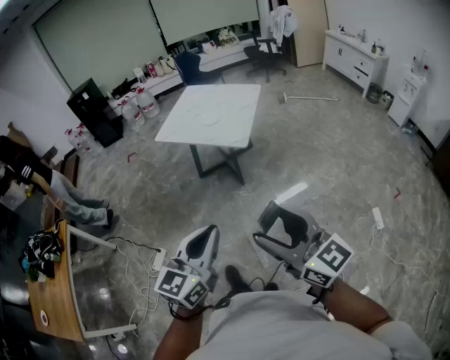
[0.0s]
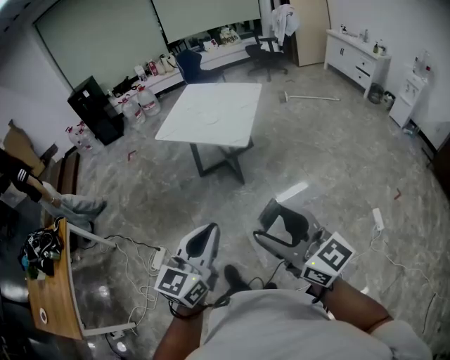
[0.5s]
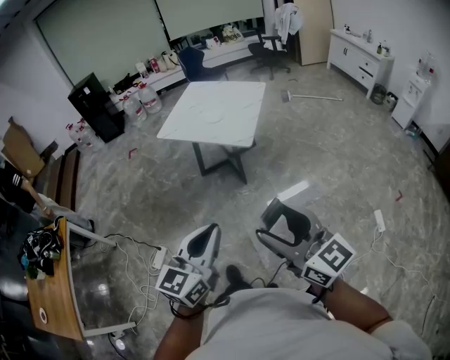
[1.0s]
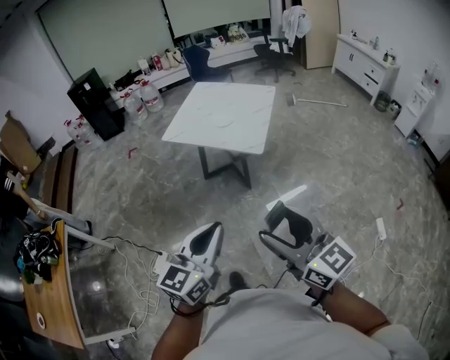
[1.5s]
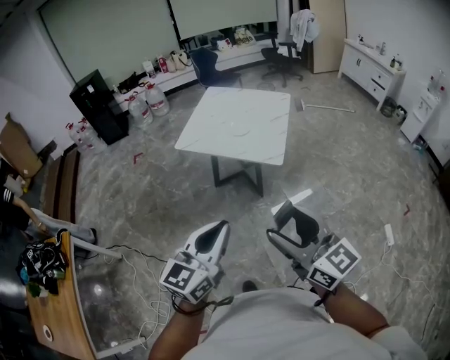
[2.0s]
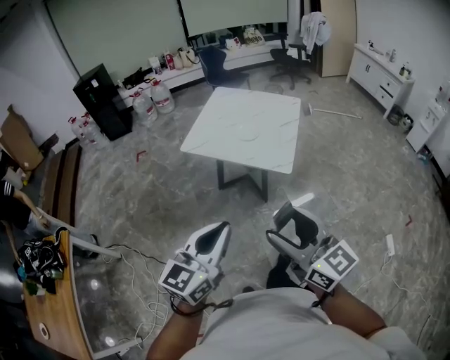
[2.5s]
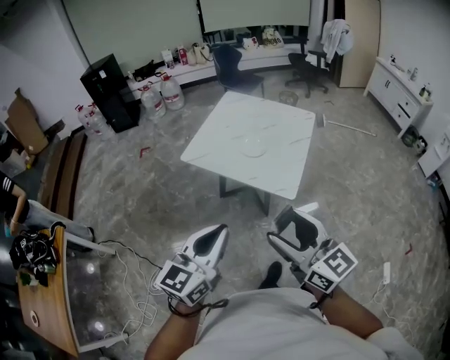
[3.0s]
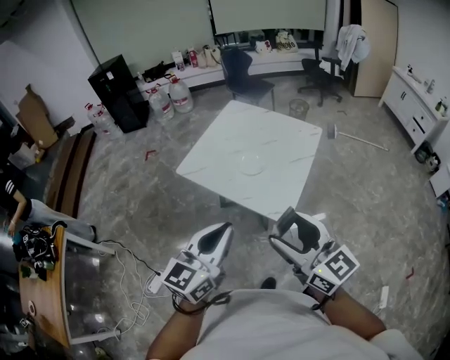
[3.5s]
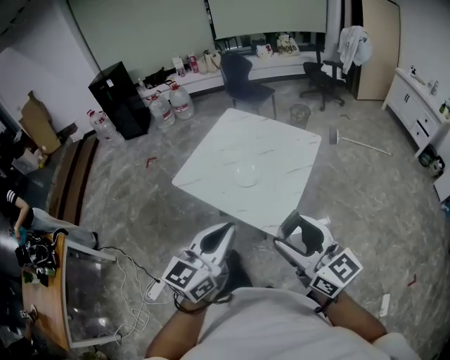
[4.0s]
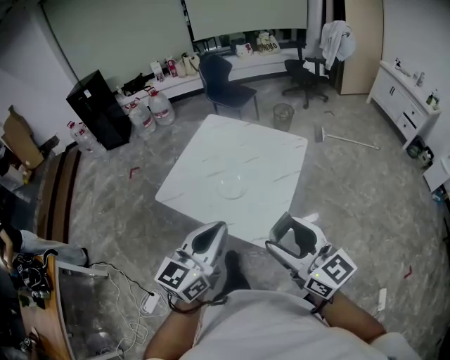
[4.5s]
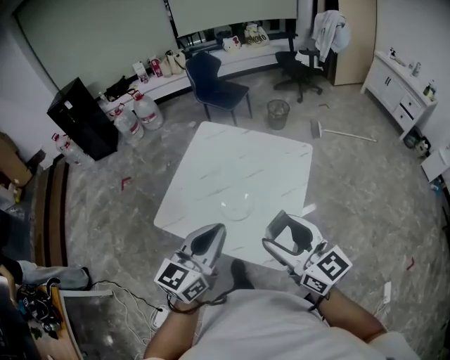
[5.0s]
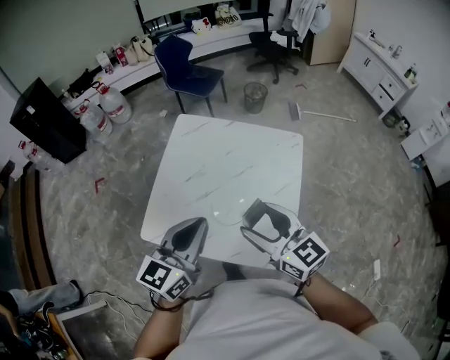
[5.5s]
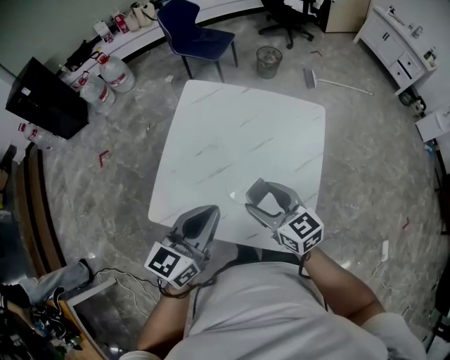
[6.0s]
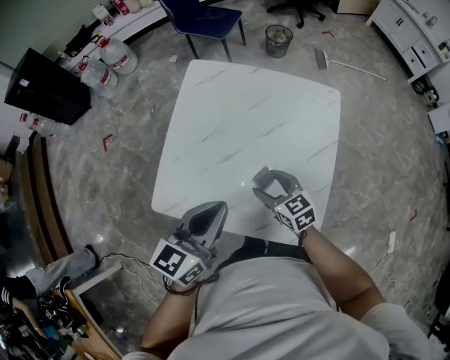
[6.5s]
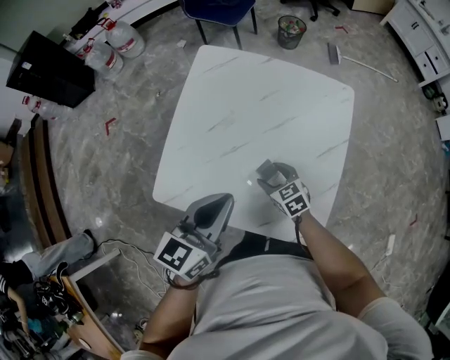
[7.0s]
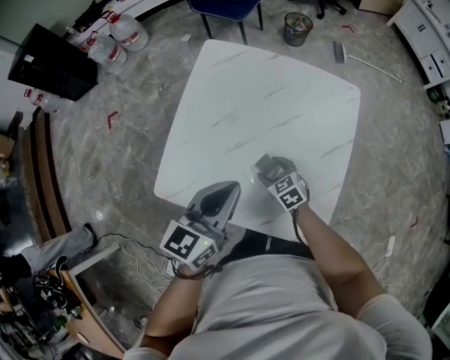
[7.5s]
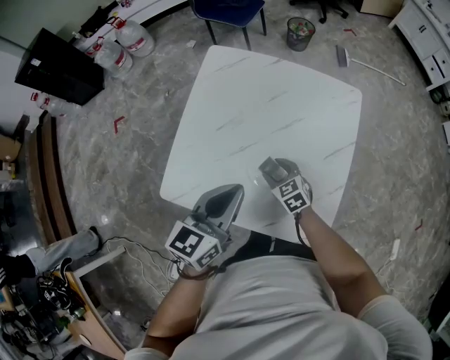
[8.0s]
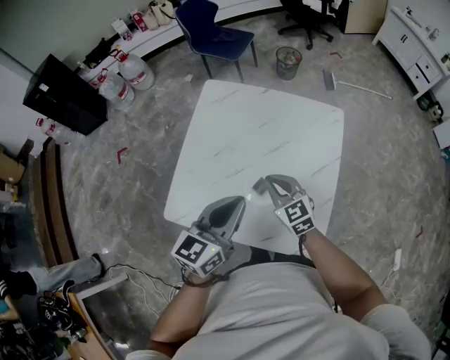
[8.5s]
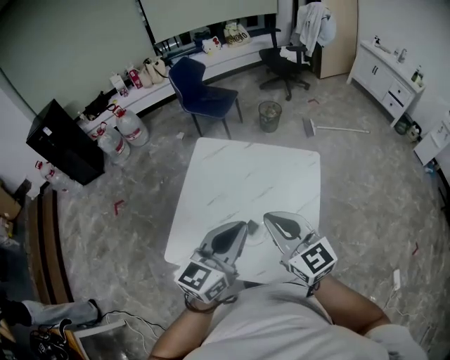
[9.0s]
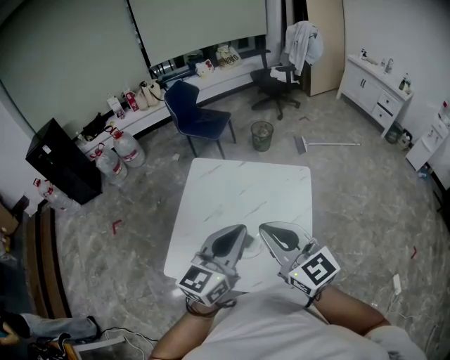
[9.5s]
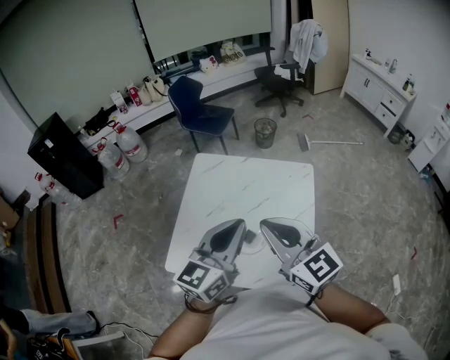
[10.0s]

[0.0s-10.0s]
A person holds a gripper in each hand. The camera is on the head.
0.0s to 2.0s: The grippers both shift forward and to the left by some 25 cm.
2.0s to 4.0s: Both grippers are carried forward and to the right, approximately 40 cm.
4.0s to 6.0s: The pair of grippers is taken forward, approximately 40 cm. The left gripper swivels roughly 20 degrees; the right gripper shifts roughly 20 cm downward, and swivels roughly 30 degrees.
6.0s to 8.0s: The right gripper travels downward by roughly 25 cm, and turns by roughly 20 degrees. The left gripper is displaced downward by about 10 cm.
8.0s to 10.0s: The right gripper moves upward, approximately 50 cm, tips its fingers upward by approximately 40 degrees, and closes; the left gripper heads upward, covering about 20 cm.

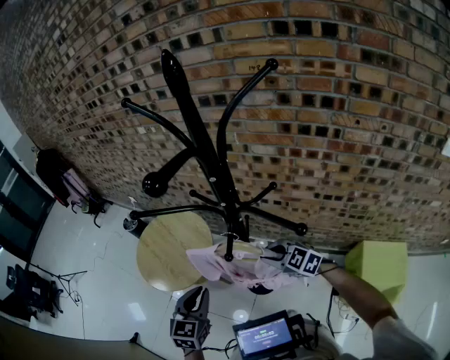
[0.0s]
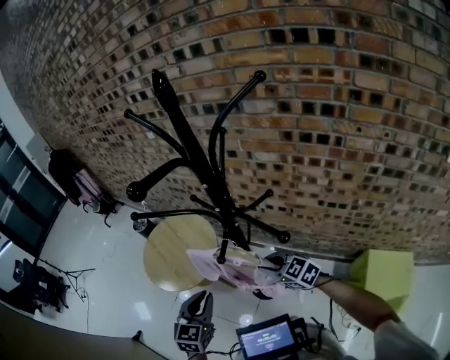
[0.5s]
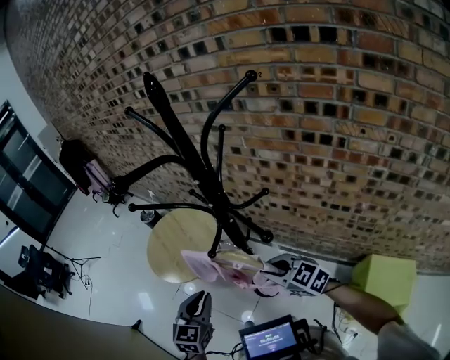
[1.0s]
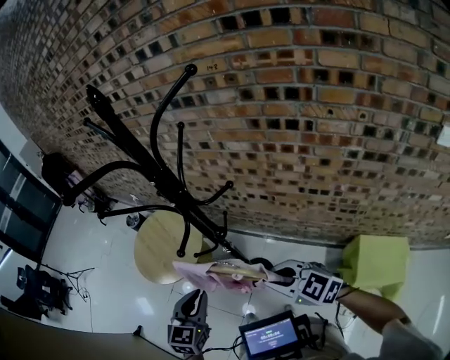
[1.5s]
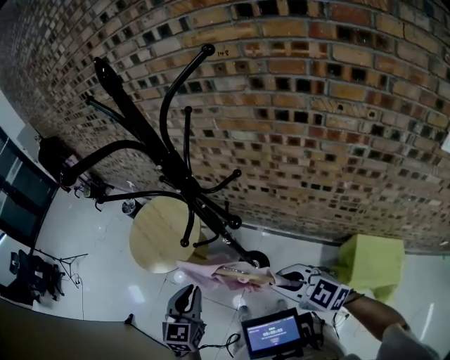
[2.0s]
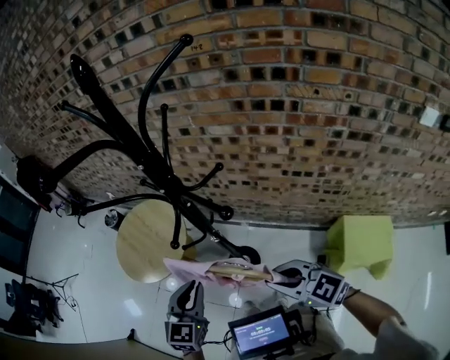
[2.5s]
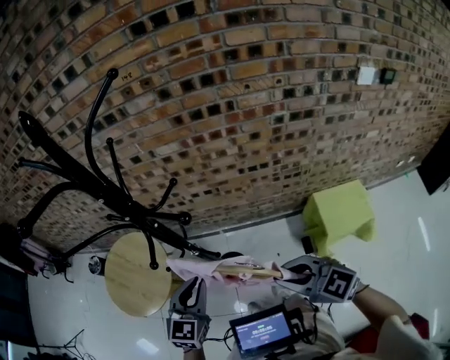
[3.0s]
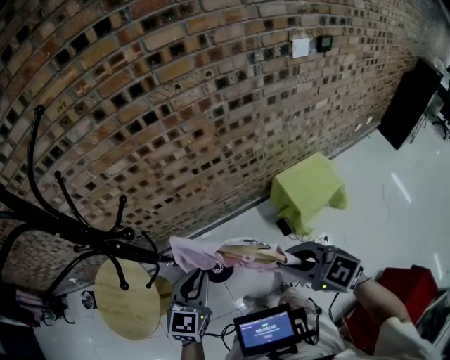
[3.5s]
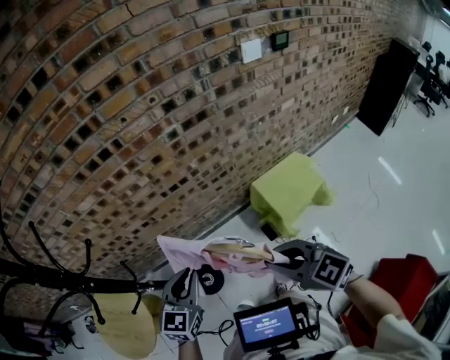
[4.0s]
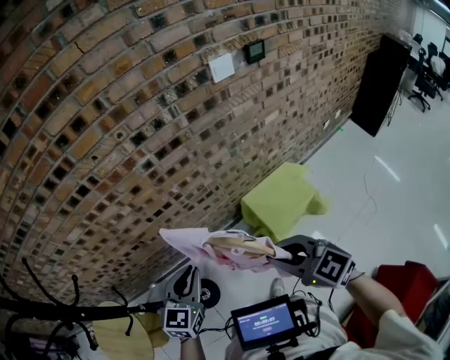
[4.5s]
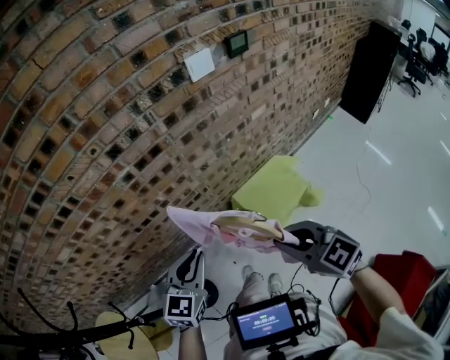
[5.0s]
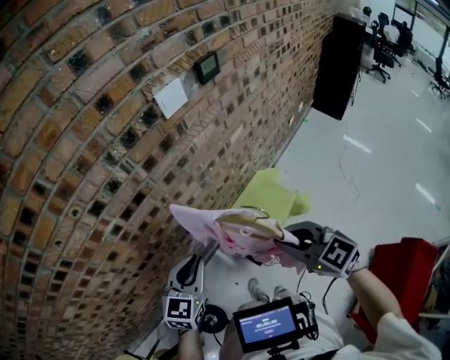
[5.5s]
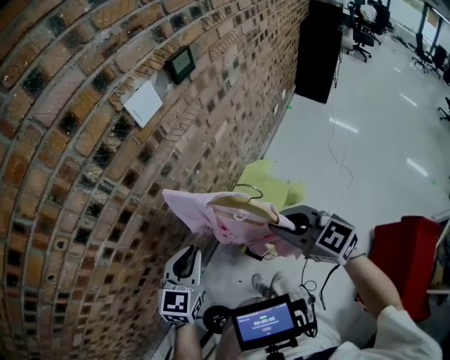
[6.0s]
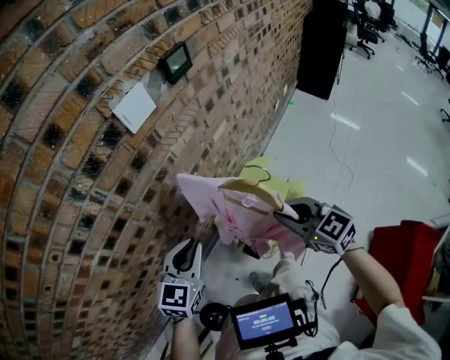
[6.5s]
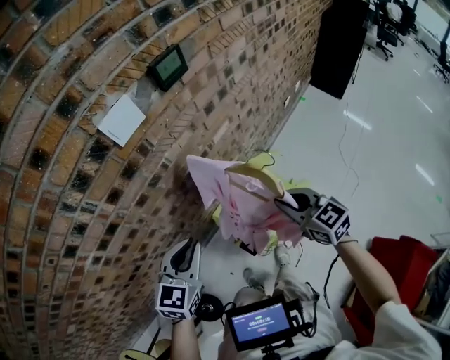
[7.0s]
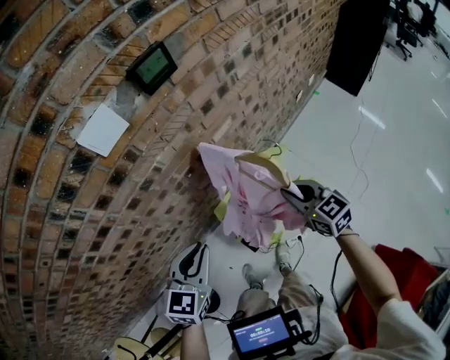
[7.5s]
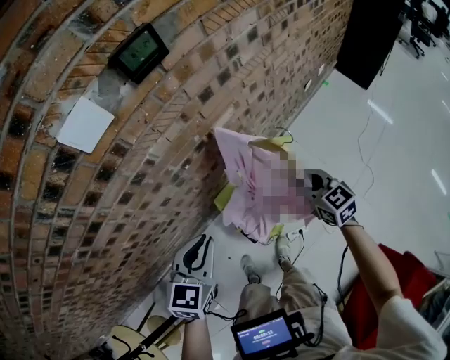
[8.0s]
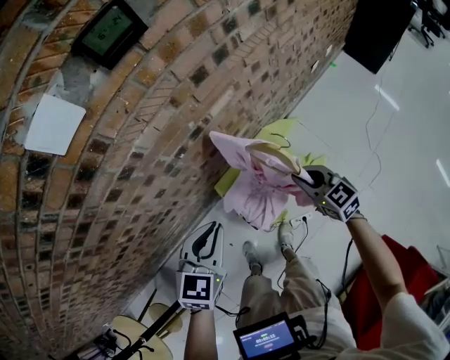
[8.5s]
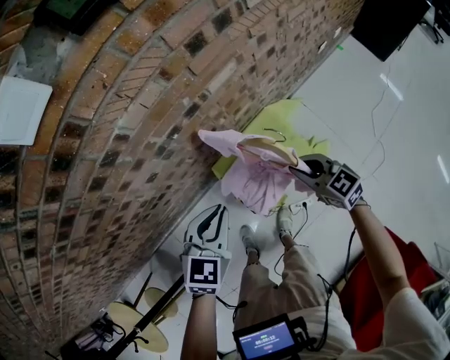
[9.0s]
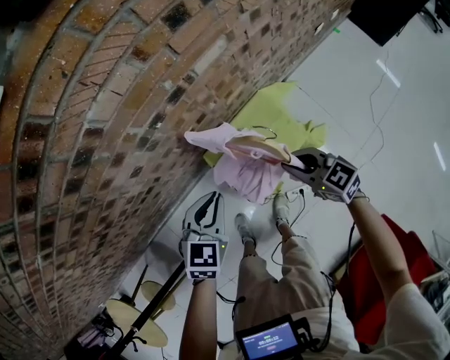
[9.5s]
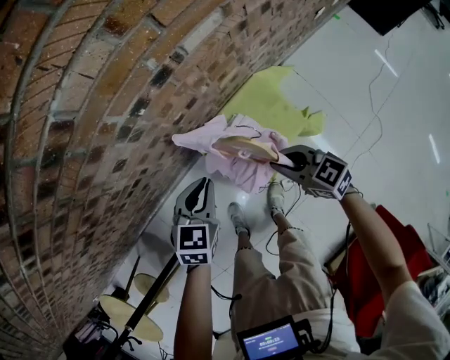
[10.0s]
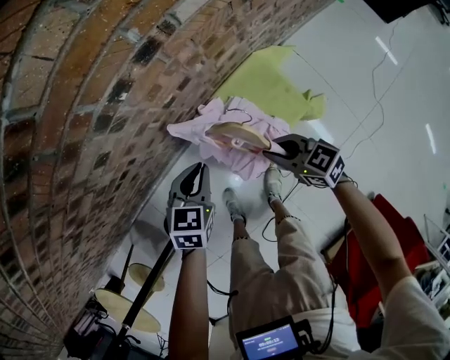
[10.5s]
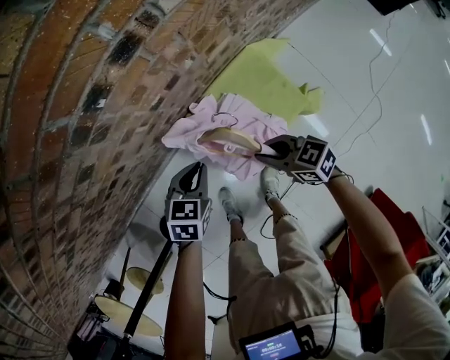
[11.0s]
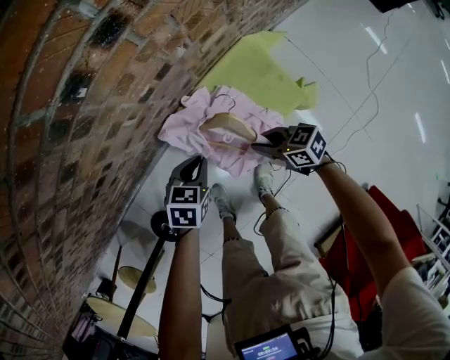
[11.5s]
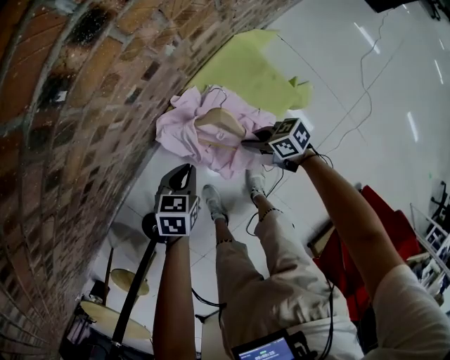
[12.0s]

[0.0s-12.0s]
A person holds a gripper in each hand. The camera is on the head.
0.0s to 2.0s: The right gripper travels backward by approximately 20 cm; the left gripper goes approximately 10 cm backward and to the right.
2.0s to 4.0s: The left gripper changes place by about 30 cm, and changes its angle by approximately 50 degrees, while the right gripper moves about 25 cm, and swivels roughly 50 degrees.
4.0s to 6.0s: The pair of grippers is taken roughly 50 cm. The left gripper changes its angle by some 30 degrees. The right gripper swivels about 30 degrees.
6.0s to 8.0s: The right gripper travels to the right, forward and downward by about 40 cm. Meanwhile the left gripper goes approximately 25 cm to the right and forward.
8.0s to 10.0s: Both grippers travel together downward, some 30 cm. The right gripper swivels some 30 degrees.
10.0s to 12.0s: The two grippers go some 30 cm downward. The left gripper swivels some 20 degrees. Meanwhile the right gripper rotates roughly 30 degrees.

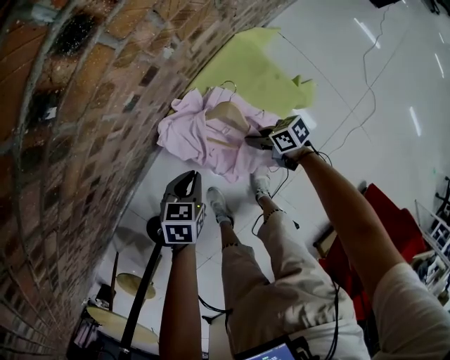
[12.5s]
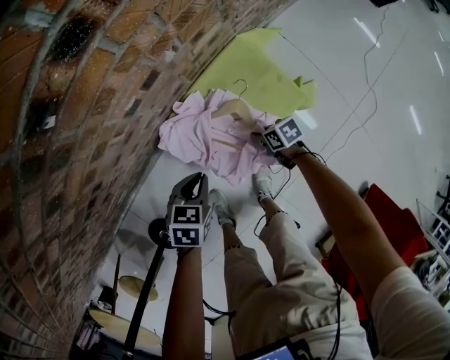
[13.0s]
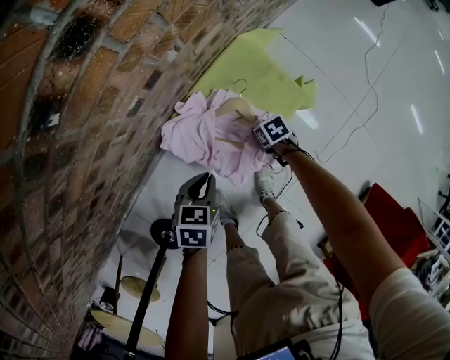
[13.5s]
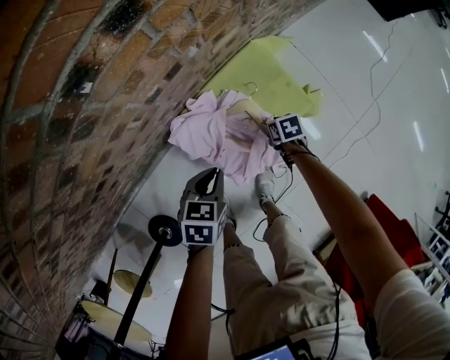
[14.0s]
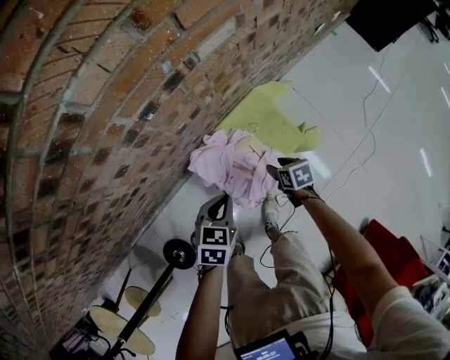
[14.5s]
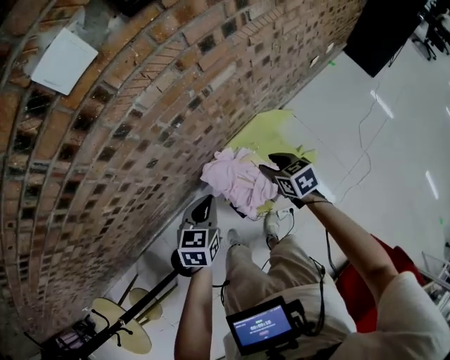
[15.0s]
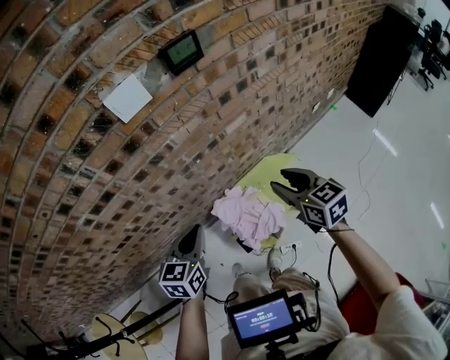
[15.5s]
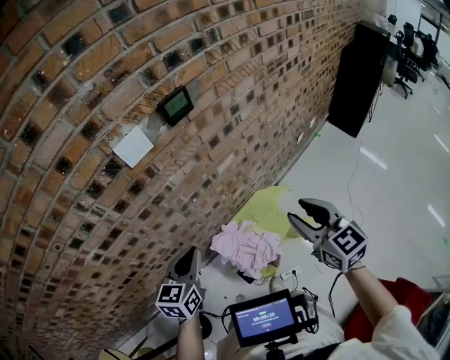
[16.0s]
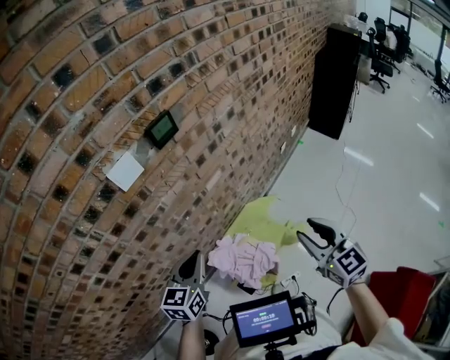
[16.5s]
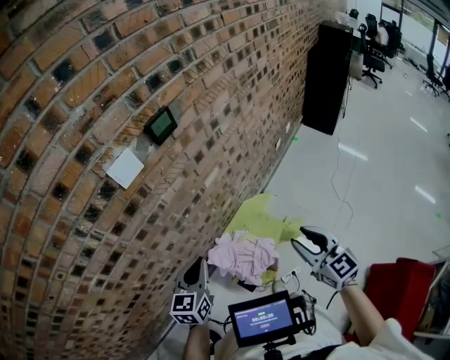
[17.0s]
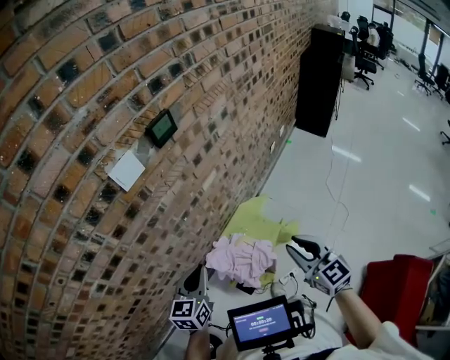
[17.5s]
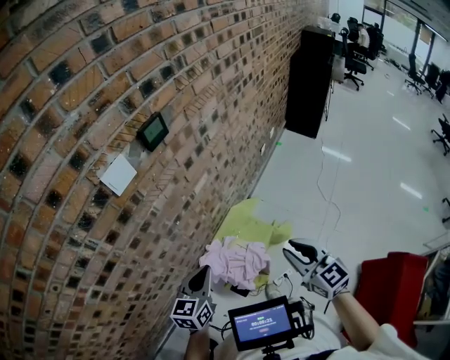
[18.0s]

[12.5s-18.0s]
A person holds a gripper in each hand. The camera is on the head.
12.5s to 14.5s: Both grippers travel together upward, about 20 cm. The right gripper swivels about 30 degrees, and opens its fingers.
14.5s to 16.0s: The right gripper heads upward, covering some 70 cm, and angles its fingers upward, by some 40 degrees. Meanwhile the left gripper heads upward, covering about 50 cm, and changes its angle by some 30 degrees.
16.0s to 18.0s: The right gripper moves backward and downward, some 10 cm.
